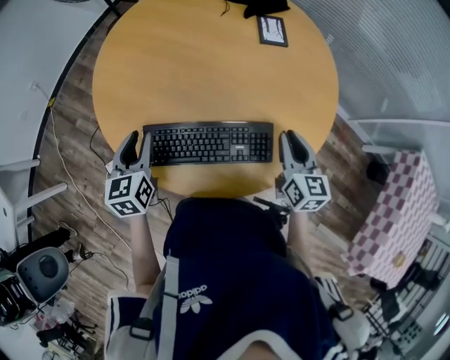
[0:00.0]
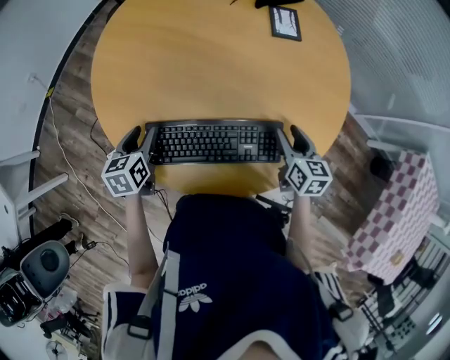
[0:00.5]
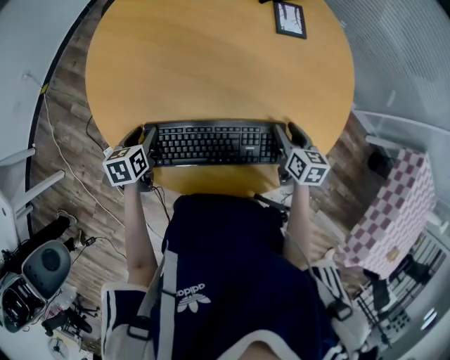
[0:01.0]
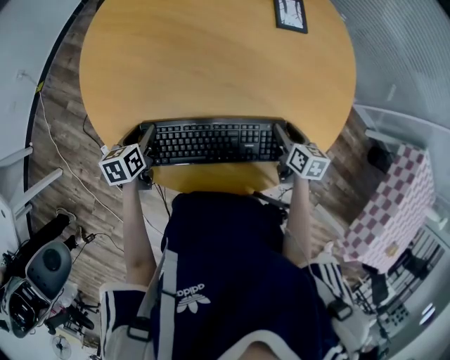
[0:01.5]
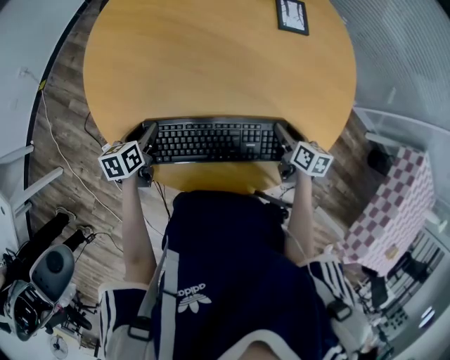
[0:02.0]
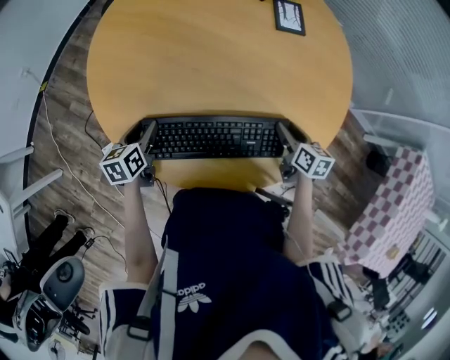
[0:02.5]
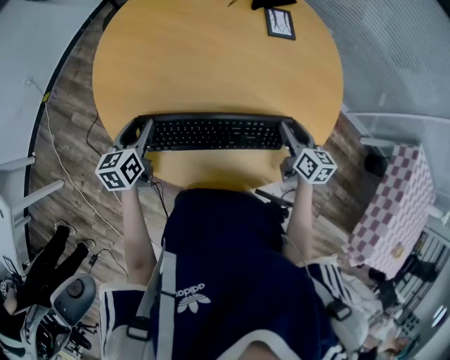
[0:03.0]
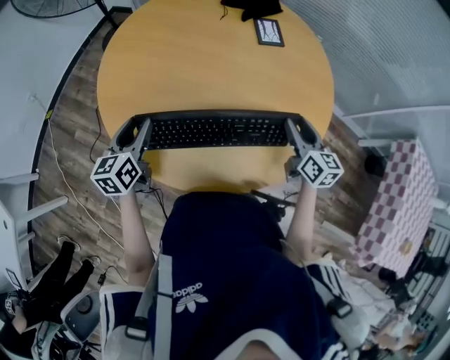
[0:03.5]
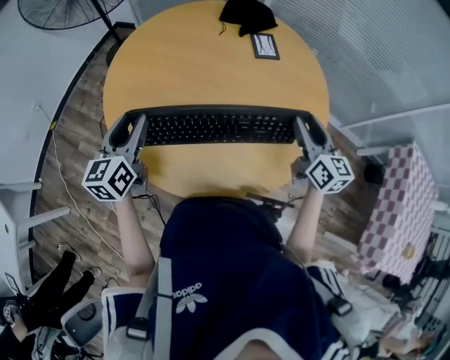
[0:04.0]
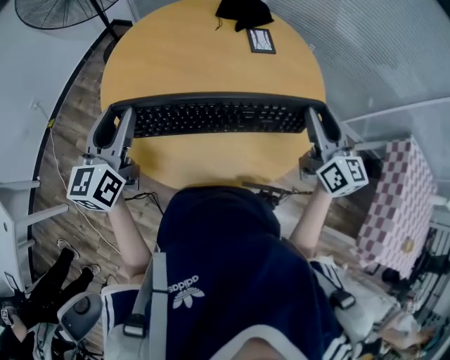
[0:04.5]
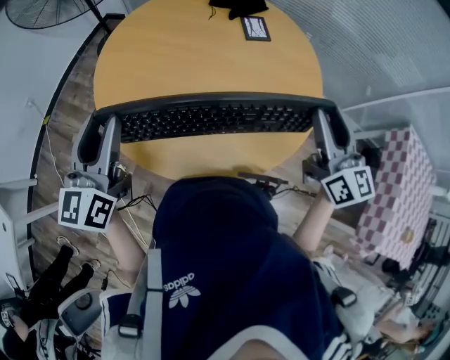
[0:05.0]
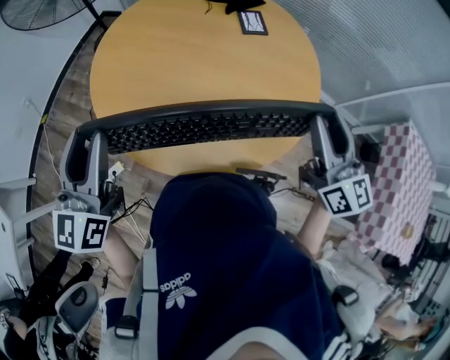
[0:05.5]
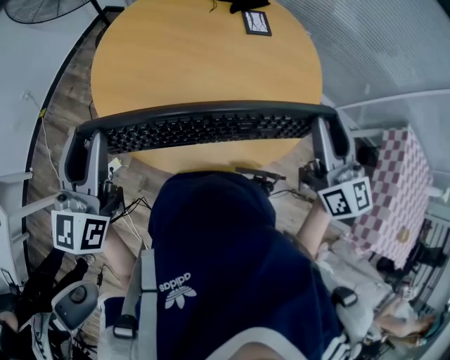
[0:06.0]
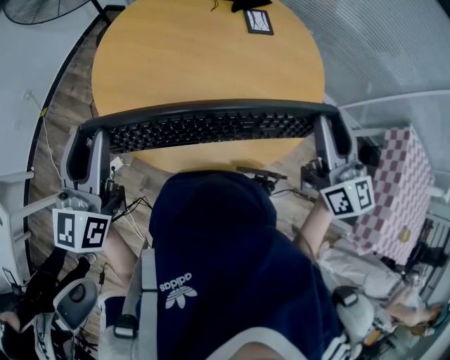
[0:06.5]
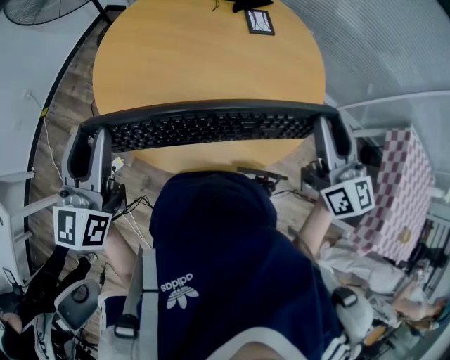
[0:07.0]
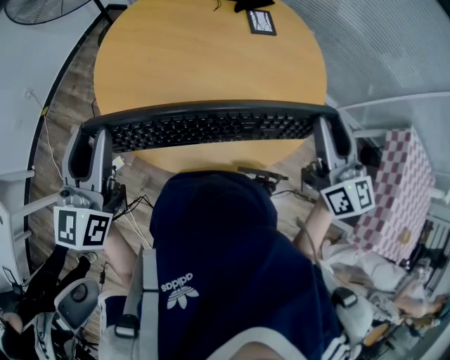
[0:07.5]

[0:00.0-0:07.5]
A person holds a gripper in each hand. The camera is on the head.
0:00.0 to 0:02.0: Both grippers move downward, roughly 15 cm. The right gripper swivels some 30 degrees, and opens up, while the left gripper rotates roughly 30 degrees.
0:02.0 to 0:04.0: The two grippers go some 25 cm upward. The right gripper points its fingers about 30 degrees further upward, while the left gripper tips its fingers upward by about 30 degrees.
0:04.0 to 0:05.5: The grippers both shift upward and backward by approximately 15 cm.
0:05.5 to 0:07.5: The grippers make only small movements.

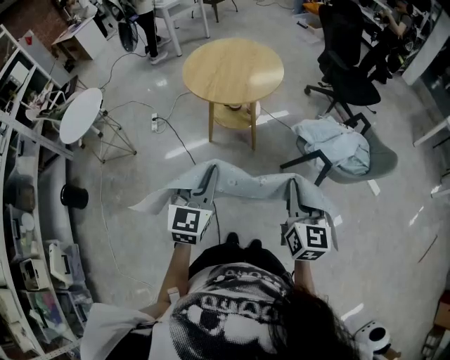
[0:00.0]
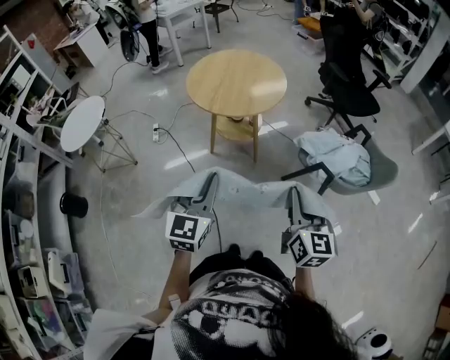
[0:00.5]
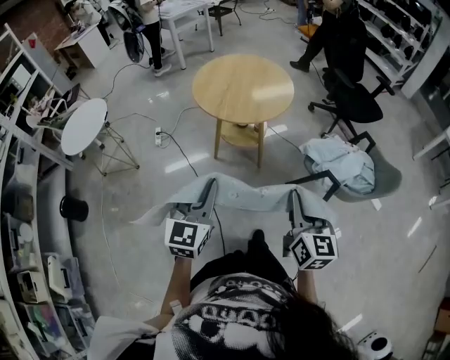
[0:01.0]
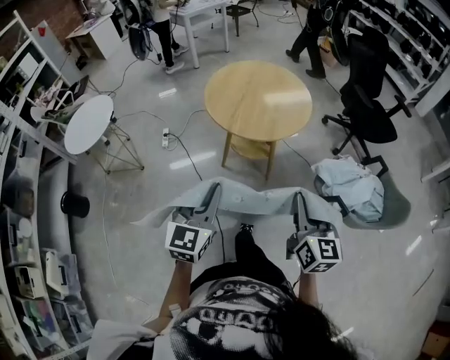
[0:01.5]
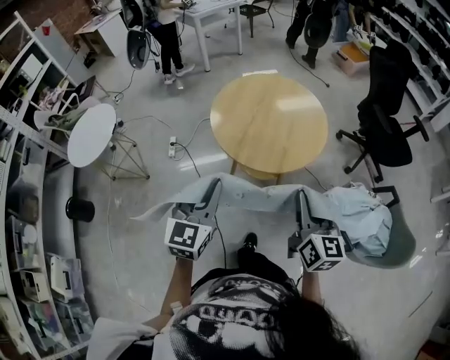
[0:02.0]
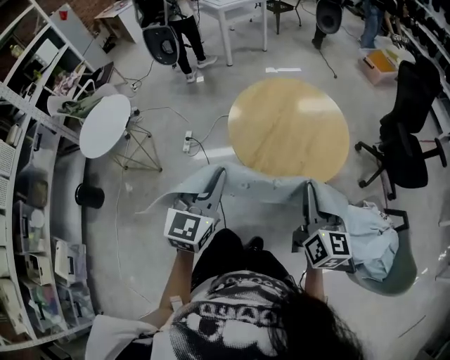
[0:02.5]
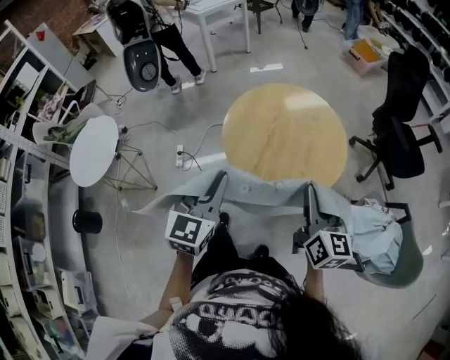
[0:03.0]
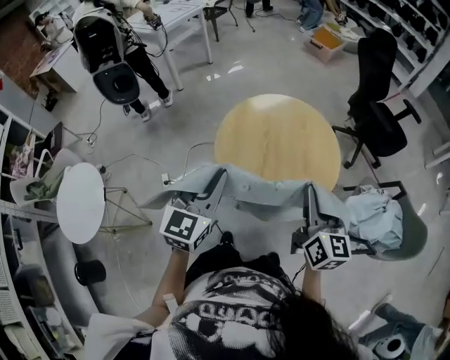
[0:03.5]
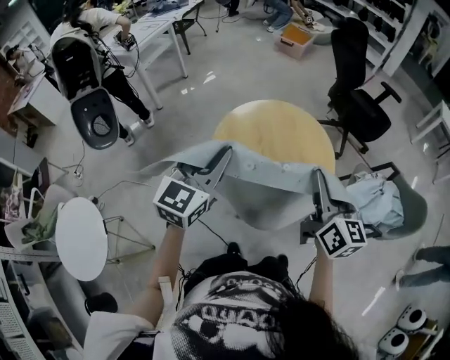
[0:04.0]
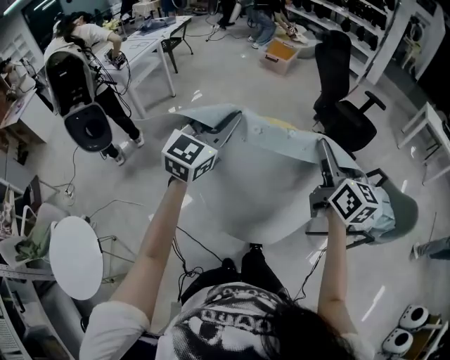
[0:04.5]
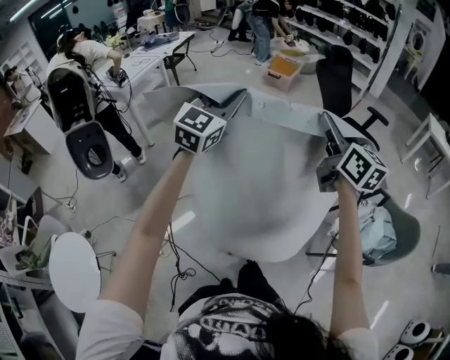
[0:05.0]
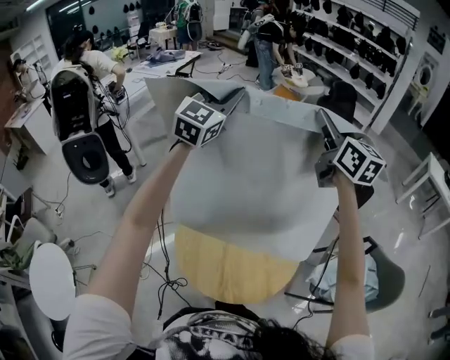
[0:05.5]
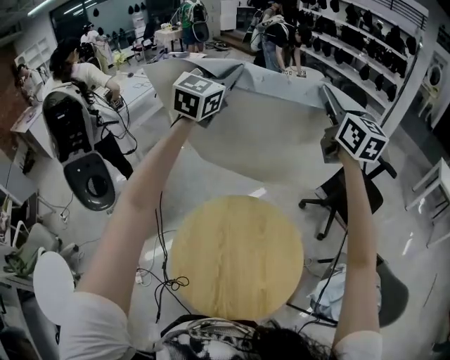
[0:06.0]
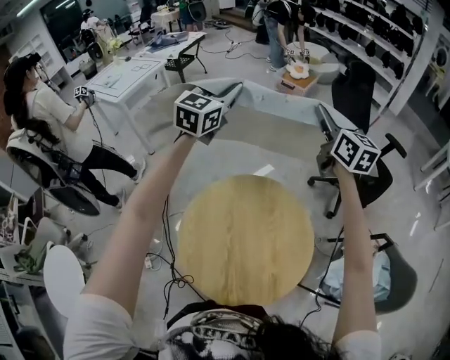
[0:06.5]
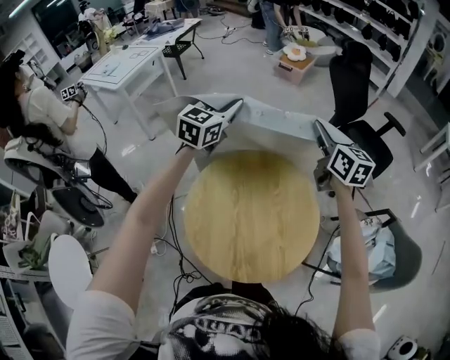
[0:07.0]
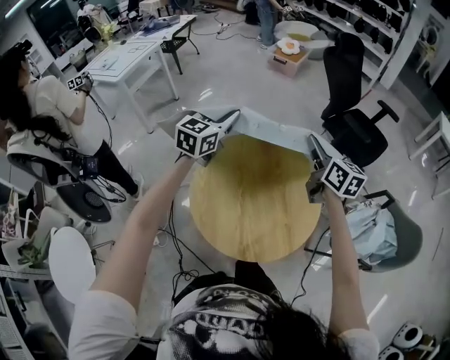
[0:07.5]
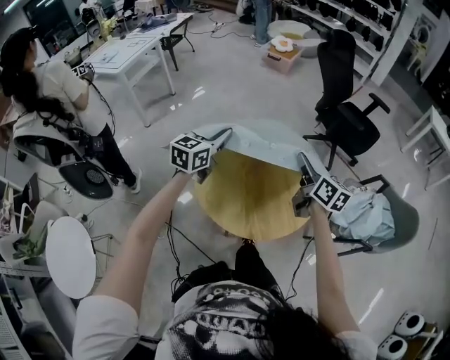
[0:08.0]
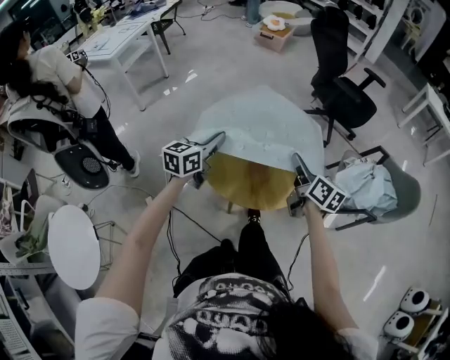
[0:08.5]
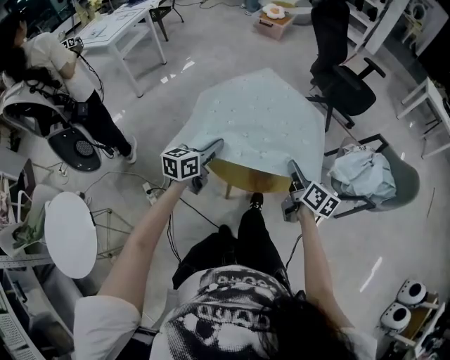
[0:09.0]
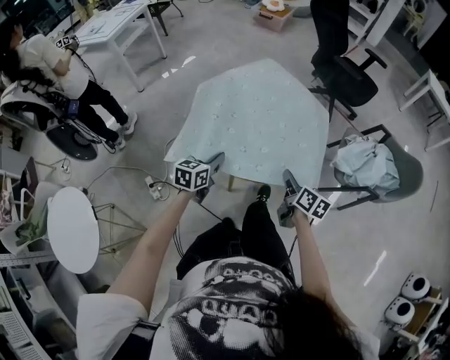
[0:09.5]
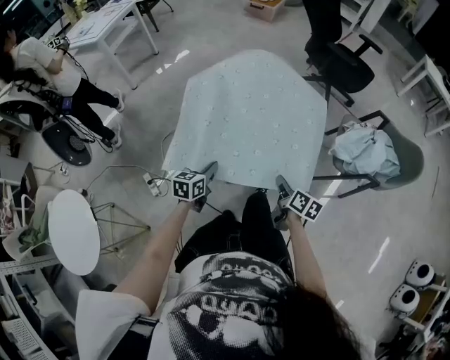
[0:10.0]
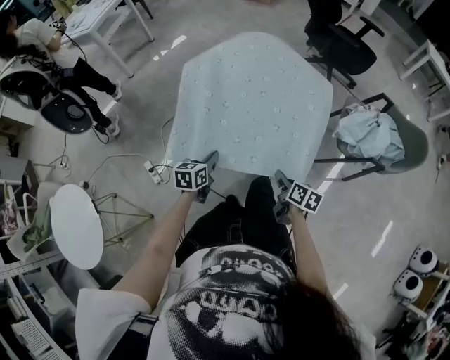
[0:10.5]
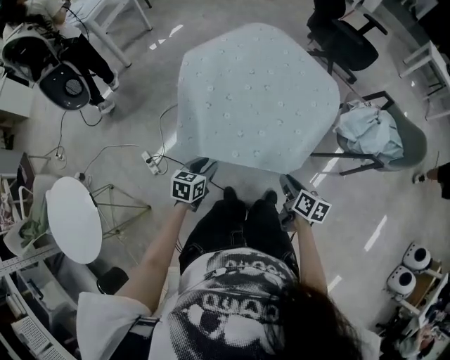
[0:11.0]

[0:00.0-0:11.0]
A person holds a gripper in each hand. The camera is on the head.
0:00.0 to 0:02.0: The right gripper goes about 30 cm forward, while the left gripper goes about 30 cm forward and to the left.
0:02.0 to 0:03.5: Both grippers travel together forward and to the left, roughly 25 cm. The left gripper turns by about 20 degrees.
0:03.5 to 0:05.5: The grippers both shift forward and upward by some 50 cm. The left gripper swivels approximately 30 degrees.
0:05.5 to 0:07.5: The two grippers go some 25 cm downward. The right gripper swivels approximately 20 degrees; the left gripper swivels some 30 degrees.
0:07.5 to 0:09.0: The grippers both shift backward and downward by some 35 cm. The left gripper rotates some 30 degrees. Meanwhile the right gripper changes its angle by some 20 degrees.
0:09.0 to 0:11.0: Both grippers travel together backward and downward, roughly 20 cm. The left gripper changes its angle by about 30 degrees. Meanwhile the right gripper rotates about 20 degrees.

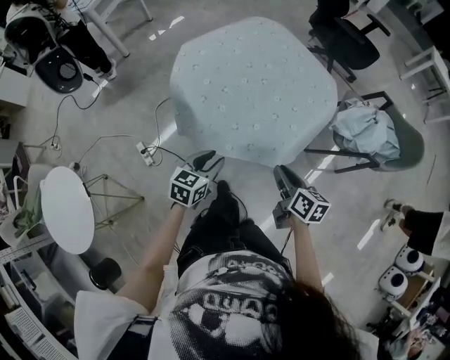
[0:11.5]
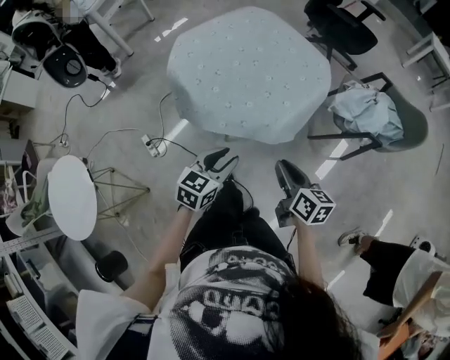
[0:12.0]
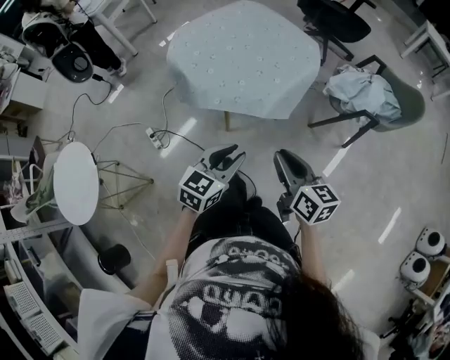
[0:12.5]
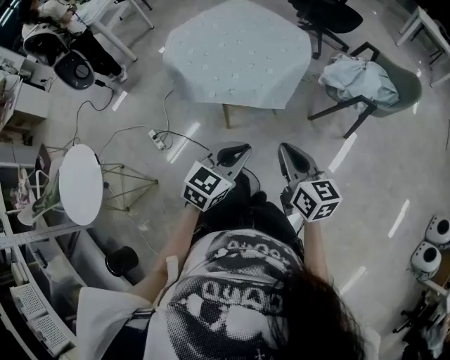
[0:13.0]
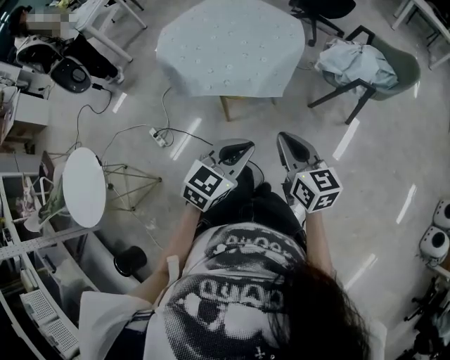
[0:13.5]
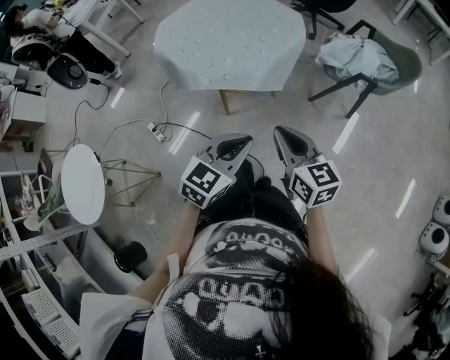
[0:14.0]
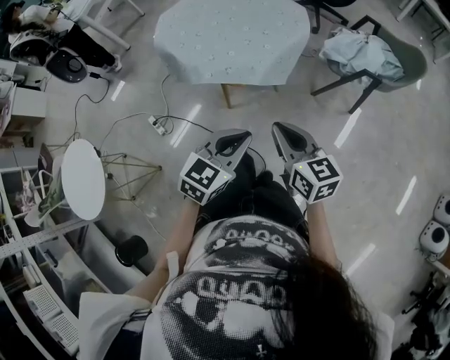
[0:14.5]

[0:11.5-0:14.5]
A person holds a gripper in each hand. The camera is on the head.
0:11.5 to 0:13.0: The right gripper goes some 25 cm backward, upward and to the right, and swivels some 20 degrees, while the left gripper heads to the right, backward and upward, covering about 30 cm, swivels some 20 degrees, and closes.
0:13.0 to 0:14.5: The grippers make only small movements.

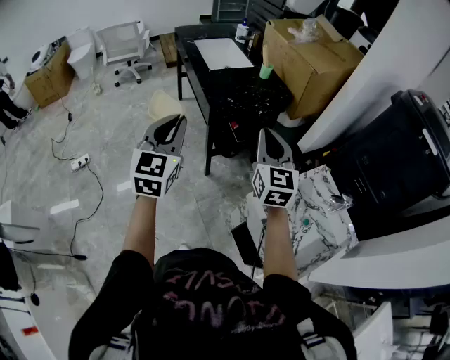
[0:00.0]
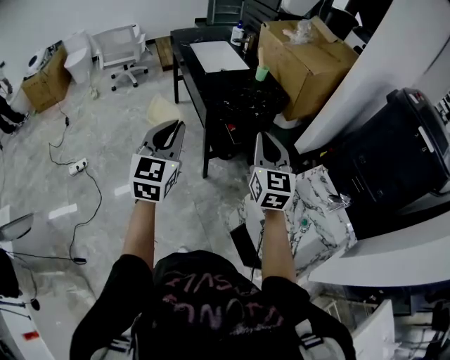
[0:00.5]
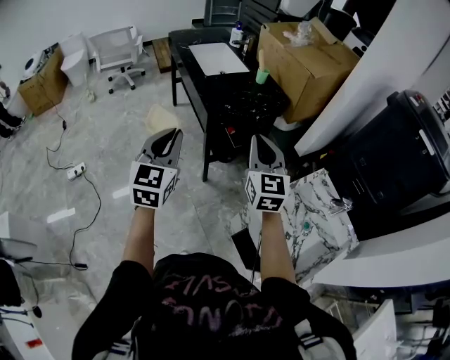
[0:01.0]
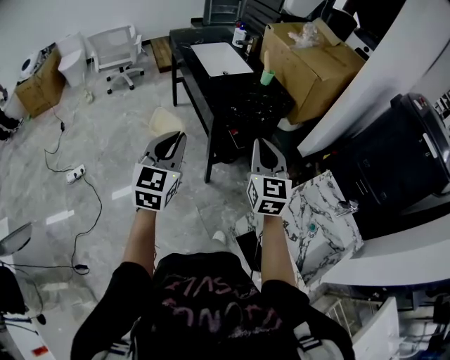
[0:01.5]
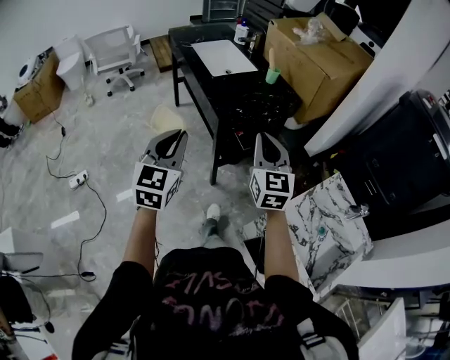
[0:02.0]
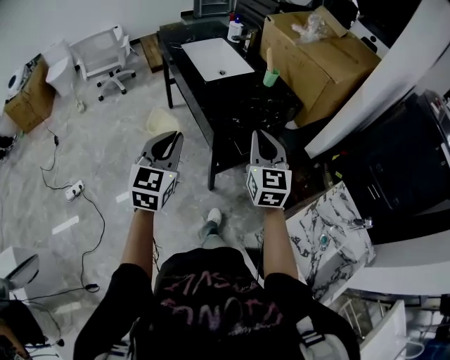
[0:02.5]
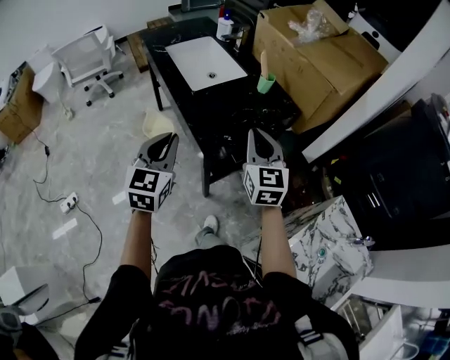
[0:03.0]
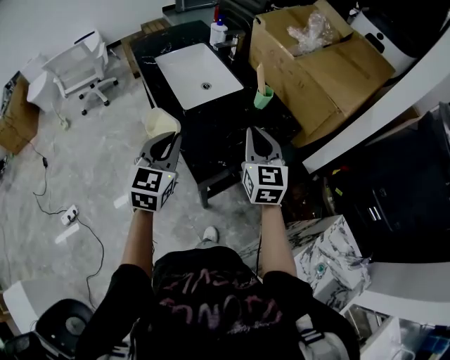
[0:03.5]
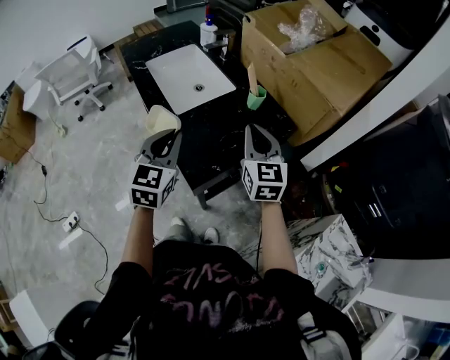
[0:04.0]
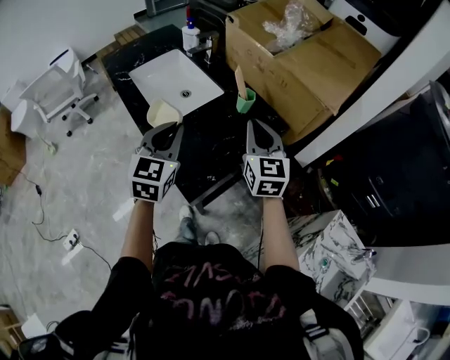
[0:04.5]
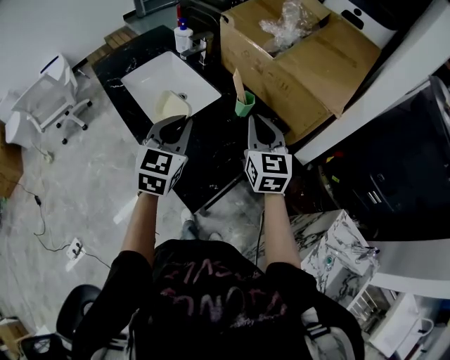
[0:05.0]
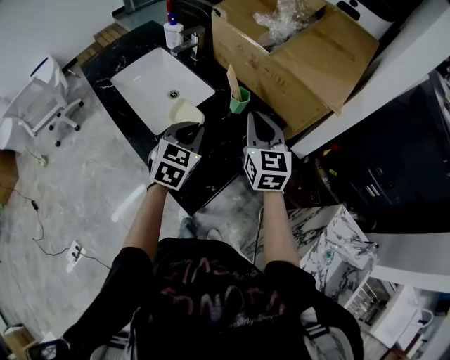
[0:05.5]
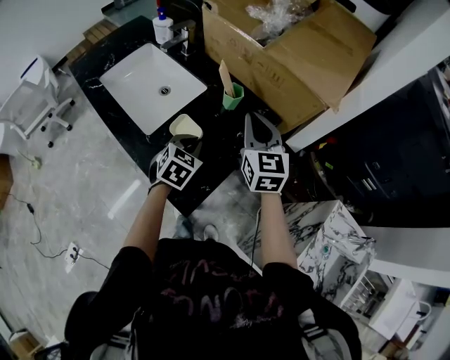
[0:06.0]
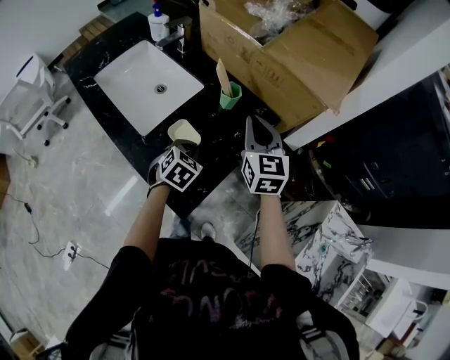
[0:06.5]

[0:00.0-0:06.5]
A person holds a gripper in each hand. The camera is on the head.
0:00.0 to 0:02.0: The right gripper is displaced forward and to the left by some 10 cm, while the left gripper travels forward, to the left and downward by about 10 cm.
0:02.0 to 0:04.5: The pair of grippers is taken forward, some 40 cm.
0:04.5 to 0:06.5: The right gripper is displaced forward by some 10 cm, while the left gripper goes some 25 cm downward and forward, and points its fingers roughly 40 degrees further downward.
